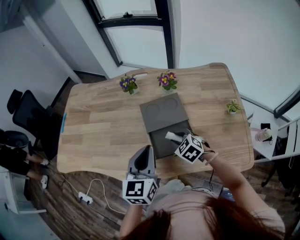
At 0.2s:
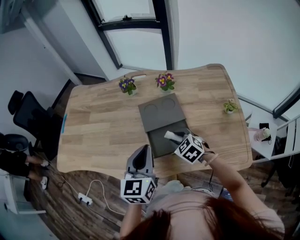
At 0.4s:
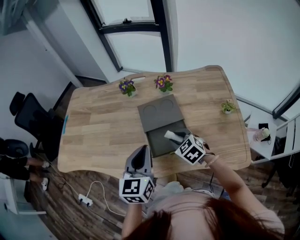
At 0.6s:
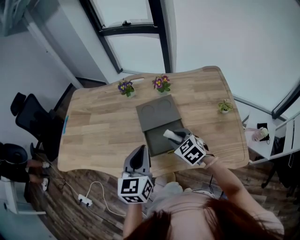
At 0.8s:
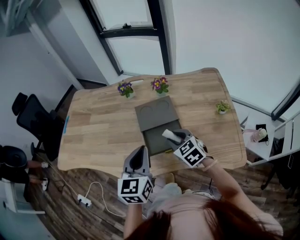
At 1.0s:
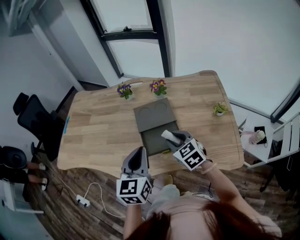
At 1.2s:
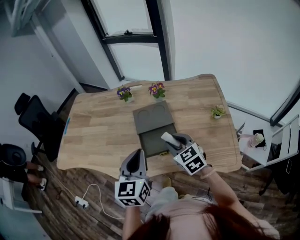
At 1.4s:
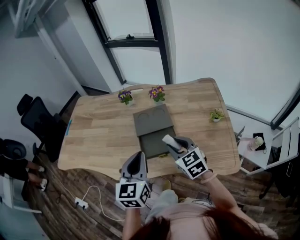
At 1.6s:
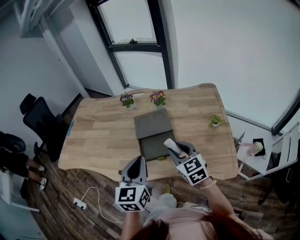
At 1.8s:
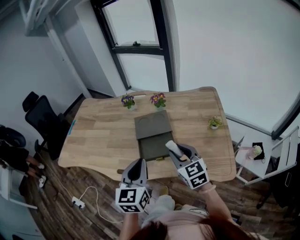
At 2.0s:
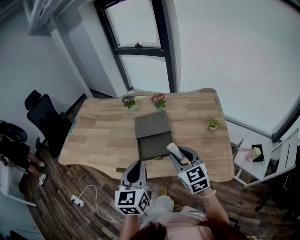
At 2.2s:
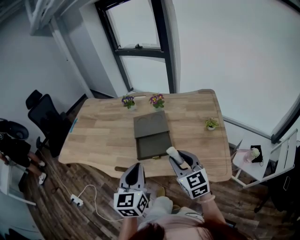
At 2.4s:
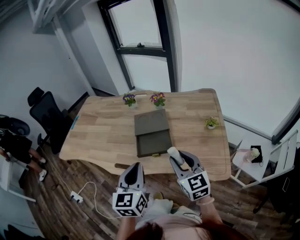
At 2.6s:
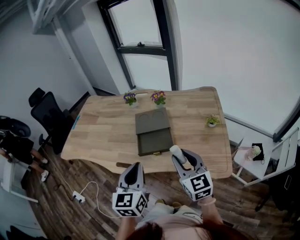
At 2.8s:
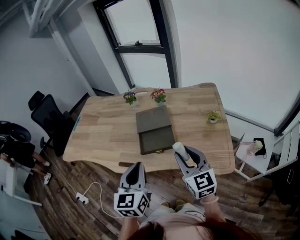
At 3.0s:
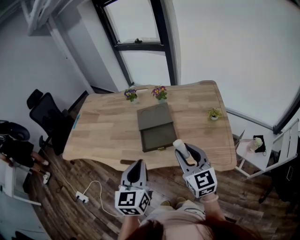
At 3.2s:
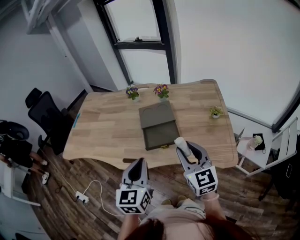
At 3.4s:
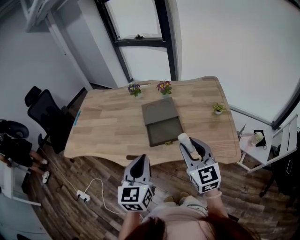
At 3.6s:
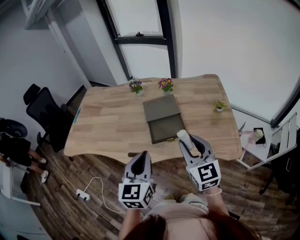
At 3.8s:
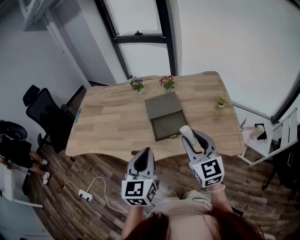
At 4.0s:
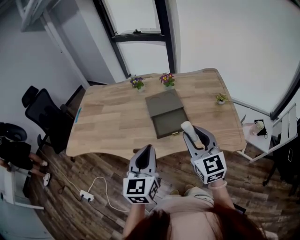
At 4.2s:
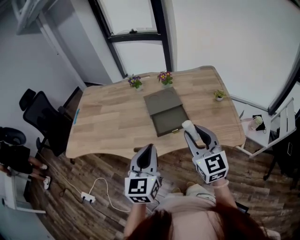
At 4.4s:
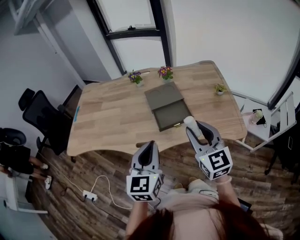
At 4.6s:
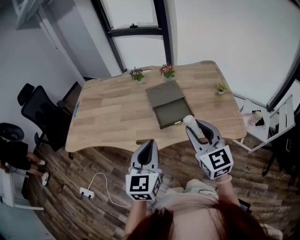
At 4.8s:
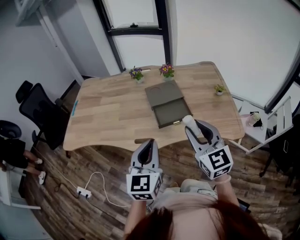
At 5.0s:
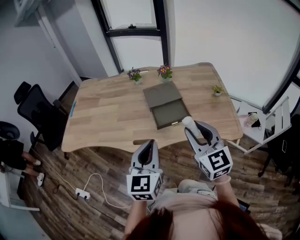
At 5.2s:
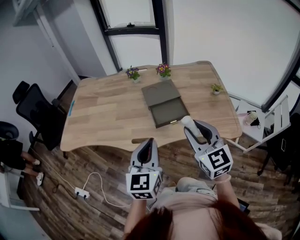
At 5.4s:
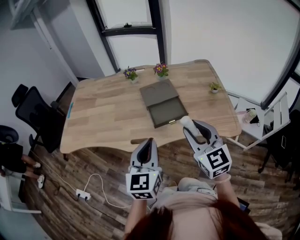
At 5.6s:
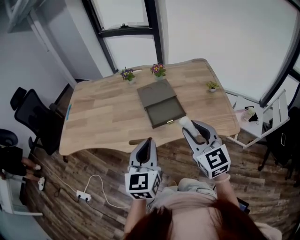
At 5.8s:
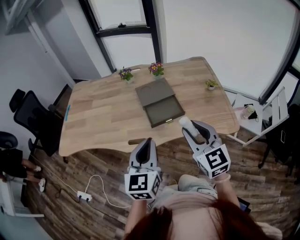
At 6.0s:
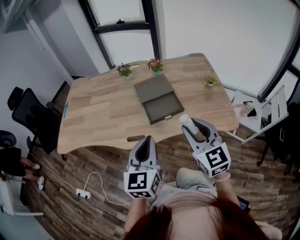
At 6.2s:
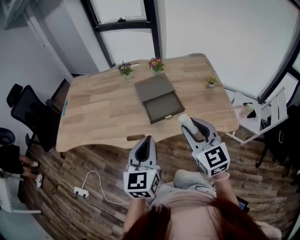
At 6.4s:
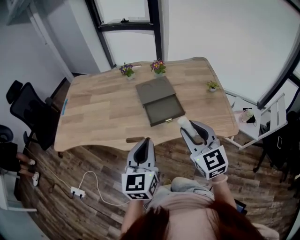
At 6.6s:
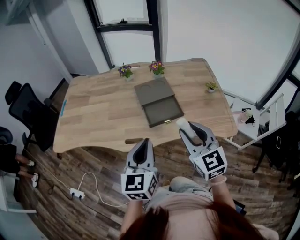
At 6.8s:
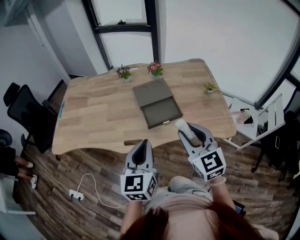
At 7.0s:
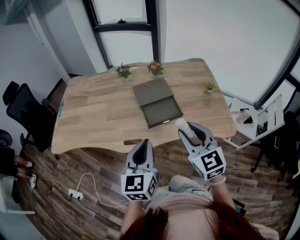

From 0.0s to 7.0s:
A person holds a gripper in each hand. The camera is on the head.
From 0.0s to 1.4s: The left gripper travels backward and upward by roughly 10 cm. Meanwhile the right gripper is displaced upward and backward by about 15 cm, and swivels roughly 30 degrees.
From 1.4s to 2.8s: The left gripper heads backward, covering about 10 cm. Meanwhile the right gripper moves backward, upward and to the right, approximately 15 cm, and changes its angle by roughly 20 degrees.
From 2.8s to 4.2s: The grippers both shift to the left by some 10 cm.
From 4.2s to 7.0s: The grippers move only a little.

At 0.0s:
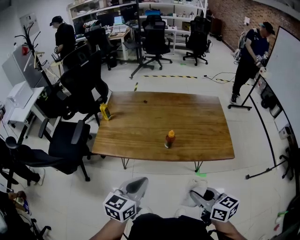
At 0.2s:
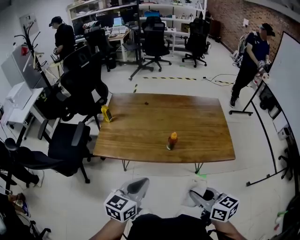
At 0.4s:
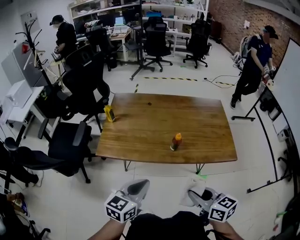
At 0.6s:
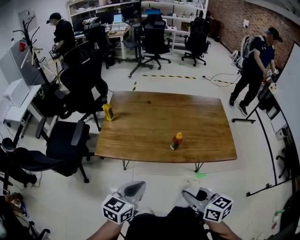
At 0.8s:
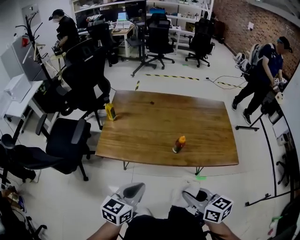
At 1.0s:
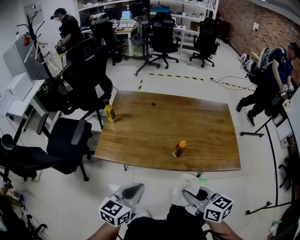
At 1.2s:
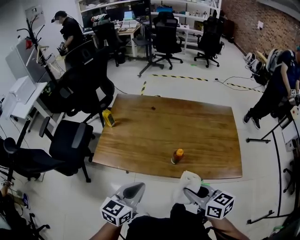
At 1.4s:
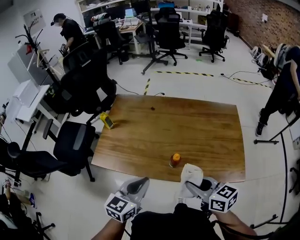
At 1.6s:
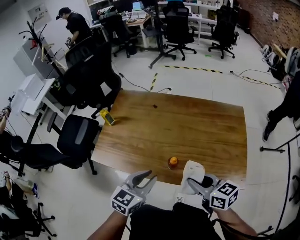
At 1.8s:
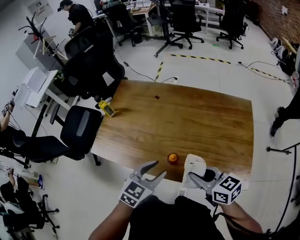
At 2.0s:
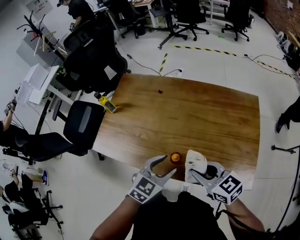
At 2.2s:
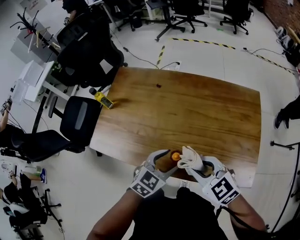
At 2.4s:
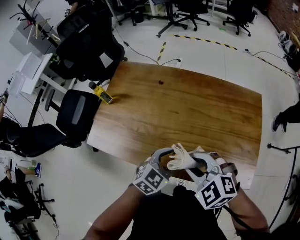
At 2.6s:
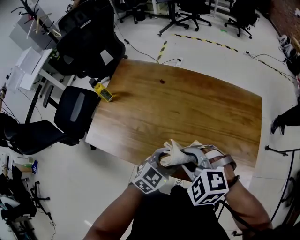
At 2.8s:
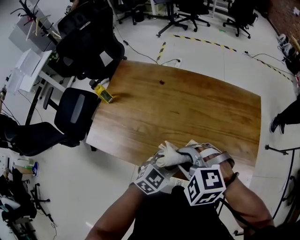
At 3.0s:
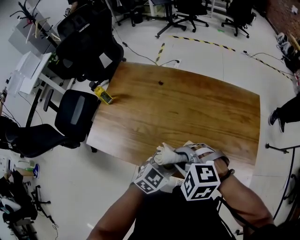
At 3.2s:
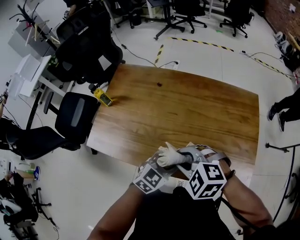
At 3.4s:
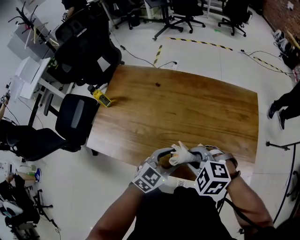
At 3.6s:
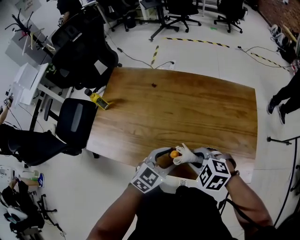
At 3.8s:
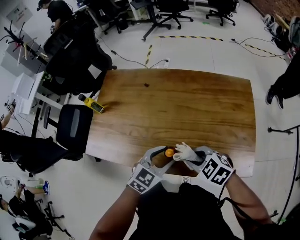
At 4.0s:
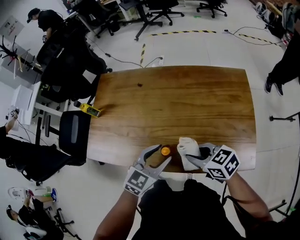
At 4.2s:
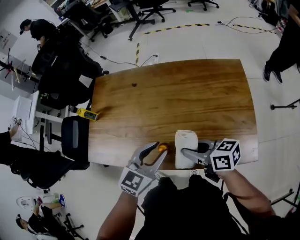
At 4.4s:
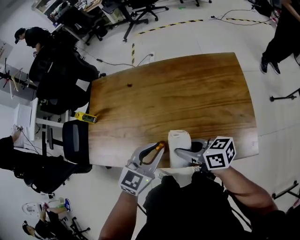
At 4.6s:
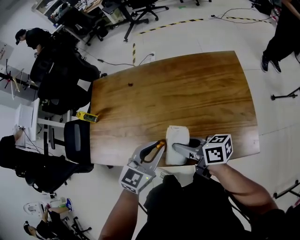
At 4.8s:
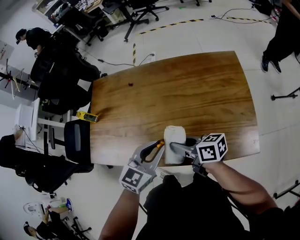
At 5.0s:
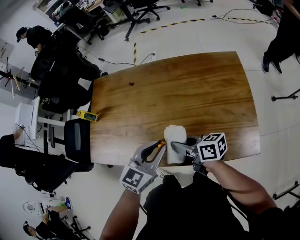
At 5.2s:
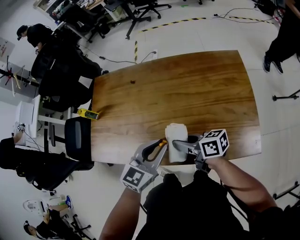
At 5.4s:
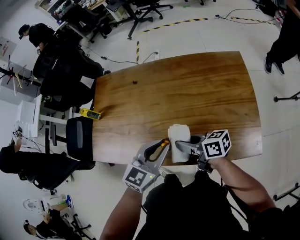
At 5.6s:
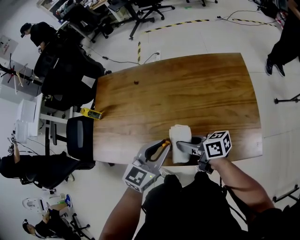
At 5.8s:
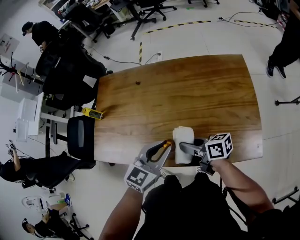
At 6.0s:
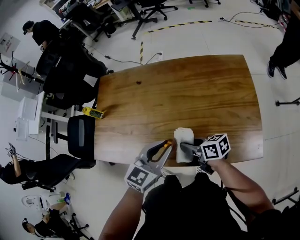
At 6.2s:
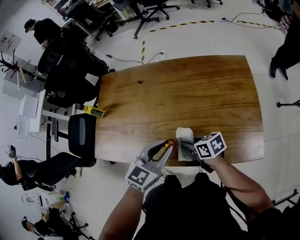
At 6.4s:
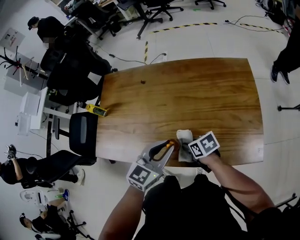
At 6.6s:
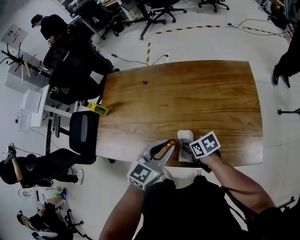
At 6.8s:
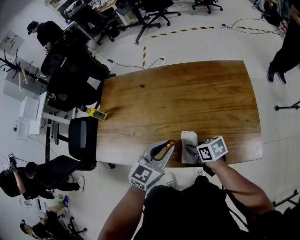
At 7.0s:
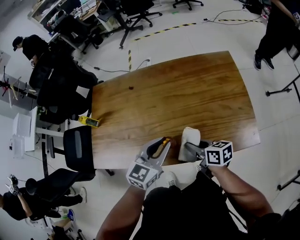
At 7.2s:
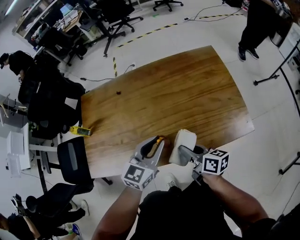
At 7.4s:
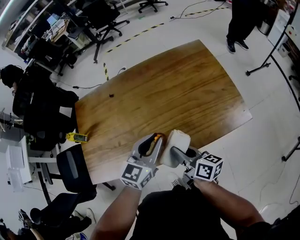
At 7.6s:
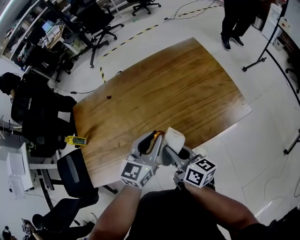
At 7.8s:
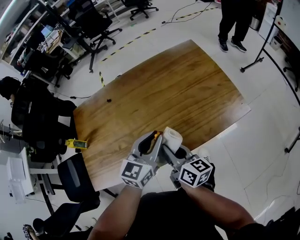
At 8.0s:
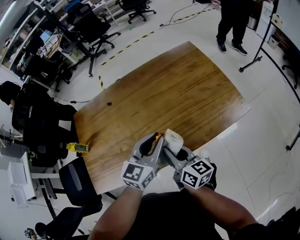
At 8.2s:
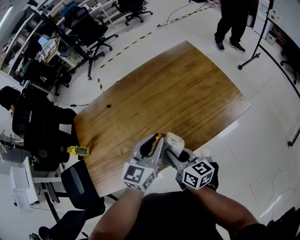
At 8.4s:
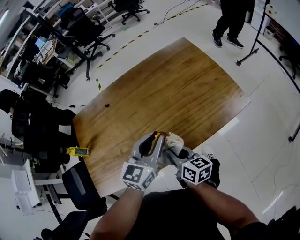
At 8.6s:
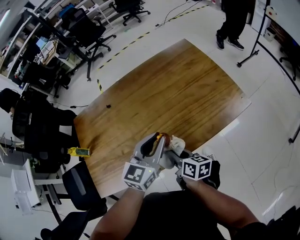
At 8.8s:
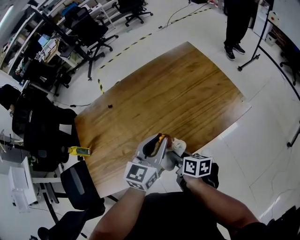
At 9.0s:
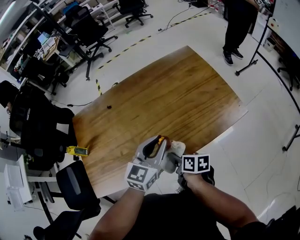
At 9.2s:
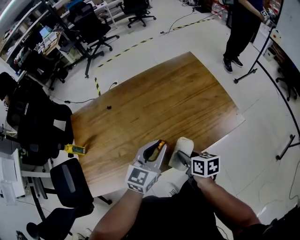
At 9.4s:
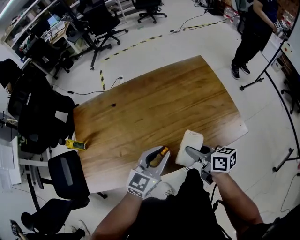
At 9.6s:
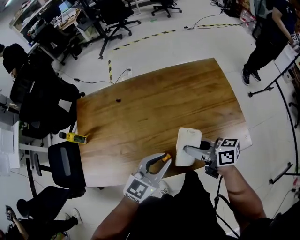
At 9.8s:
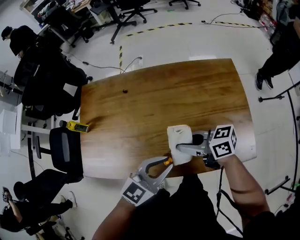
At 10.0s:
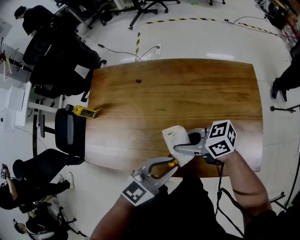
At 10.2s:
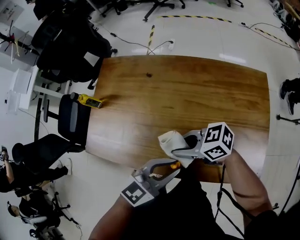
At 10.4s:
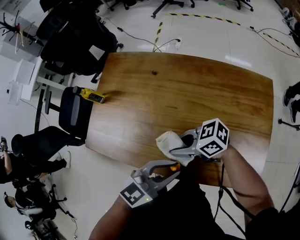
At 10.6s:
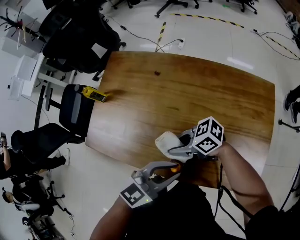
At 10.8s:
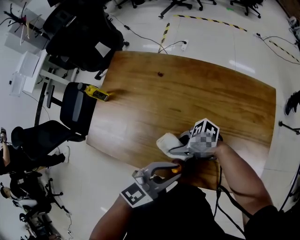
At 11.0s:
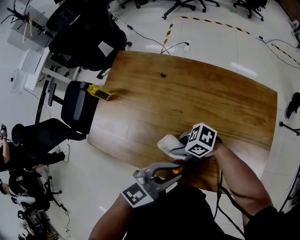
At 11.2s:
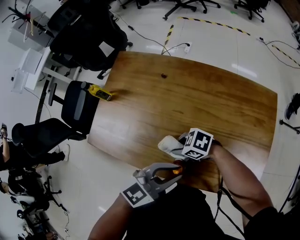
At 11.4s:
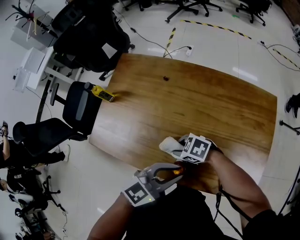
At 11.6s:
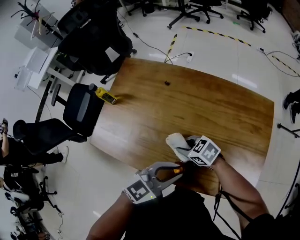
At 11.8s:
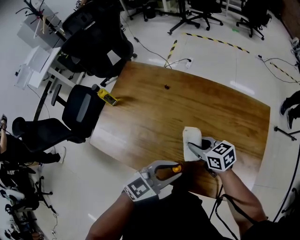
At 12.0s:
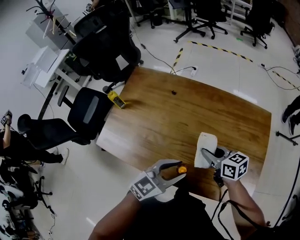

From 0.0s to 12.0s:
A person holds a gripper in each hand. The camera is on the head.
From 0.0s to 1.6s: The left gripper moves forward and to the right, approximately 20 cm, and opens, while the right gripper moves forward, approximately 25 cm.
From 1.6s to 3.0s: The left gripper goes some 15 cm to the right, downward and forward, and opens. The right gripper heads to the left and forward, covering about 10 cm, and rotates around the line of its fingers by some 60 degrees, counterclockwise from behind.
From 3.0s to 4.4s: The right gripper heads to the right, covering about 10 cm, and rotates around the line of its fingers by about 80 degrees, clockwise from behind; the left gripper moves upward, about 5 cm, and closes up.
From 4.4s to 6.0s: The right gripper travels downward by about 10 cm.
From 6.0s to 7.6s: The right gripper heads upward, covering some 5 cm, and swivels some 50 degrees.
From 7.6s to 9.0s: The right gripper shifts about 10 cm downward, and swivels some 30 degrees.
From 9.0s to 10.4s: The right gripper travels upward by approximately 10 cm, and turns by approximately 100 degrees.
From 10.4s to 12.0s: The left gripper opens, while the right gripper moves about 10 cm downward and comes back, and turns by about 40 degrees.

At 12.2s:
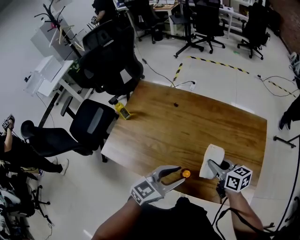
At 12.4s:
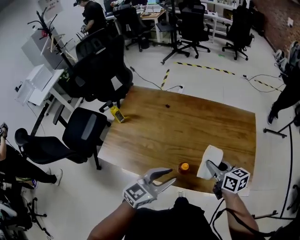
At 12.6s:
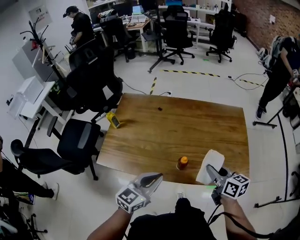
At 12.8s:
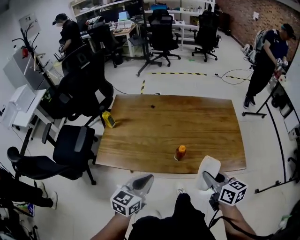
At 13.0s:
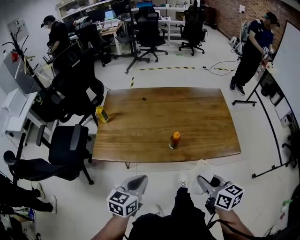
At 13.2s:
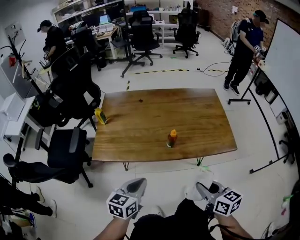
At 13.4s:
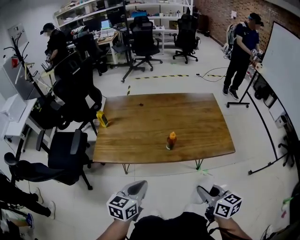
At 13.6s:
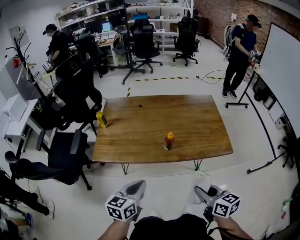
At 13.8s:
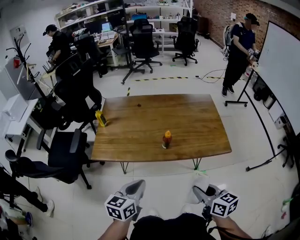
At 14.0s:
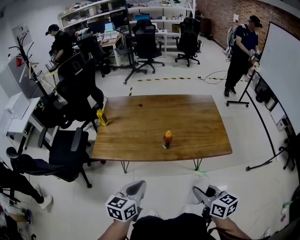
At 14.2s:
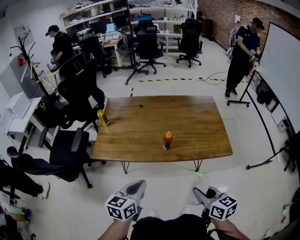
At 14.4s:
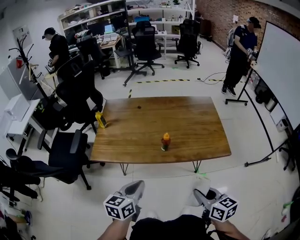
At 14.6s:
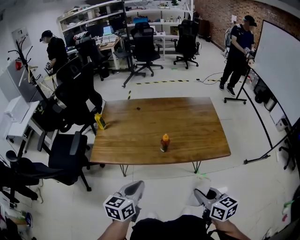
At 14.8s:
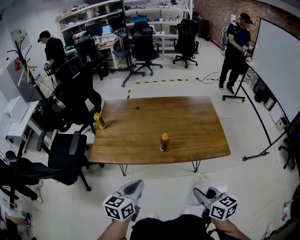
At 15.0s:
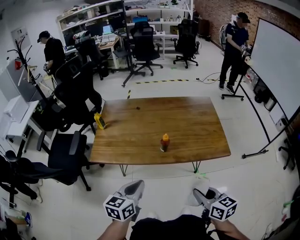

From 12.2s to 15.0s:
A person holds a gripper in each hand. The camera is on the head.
From 12.2s to 13.6s: The right gripper is displaced backward by roughly 40 cm, and swivels about 30 degrees, while the left gripper goes approximately 30 cm backward and to the left, and closes its fingers.
From 13.6s to 15.0s: There are only small adjustments of the grippers.

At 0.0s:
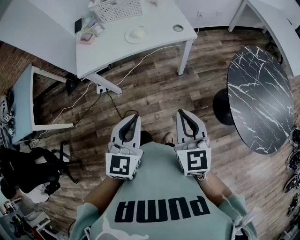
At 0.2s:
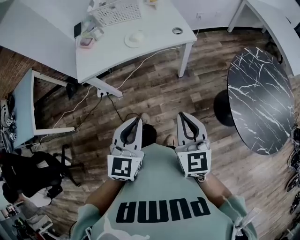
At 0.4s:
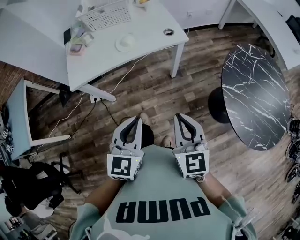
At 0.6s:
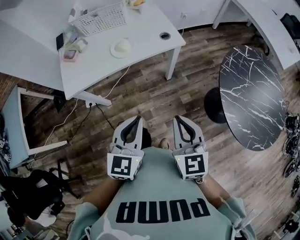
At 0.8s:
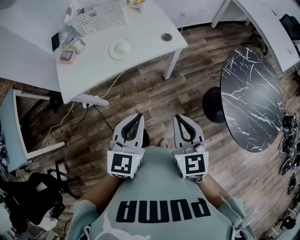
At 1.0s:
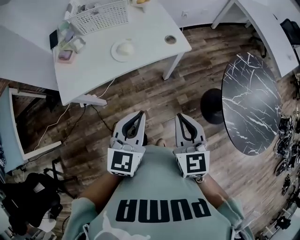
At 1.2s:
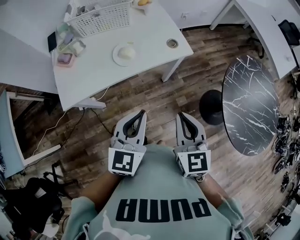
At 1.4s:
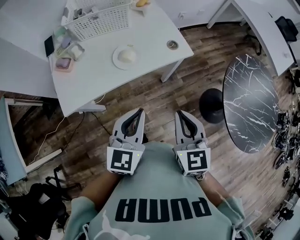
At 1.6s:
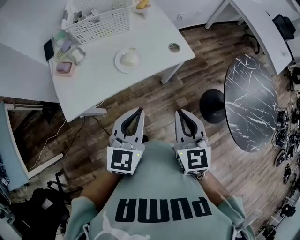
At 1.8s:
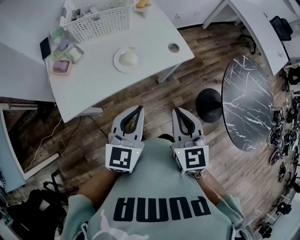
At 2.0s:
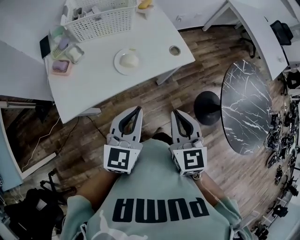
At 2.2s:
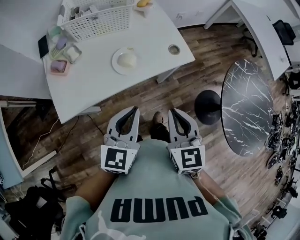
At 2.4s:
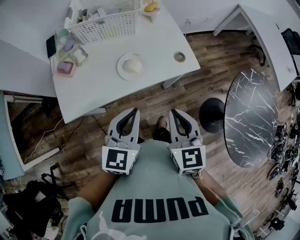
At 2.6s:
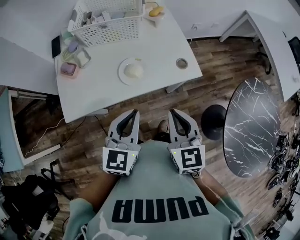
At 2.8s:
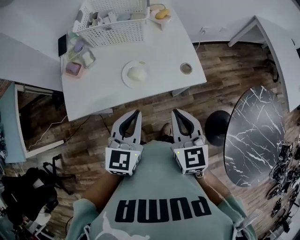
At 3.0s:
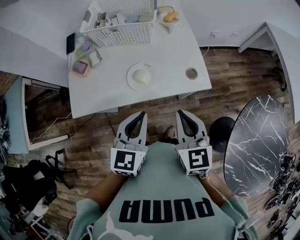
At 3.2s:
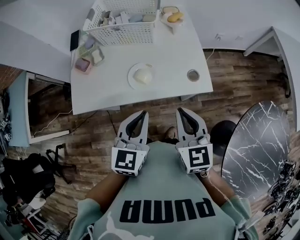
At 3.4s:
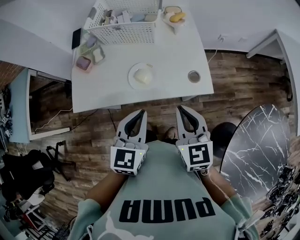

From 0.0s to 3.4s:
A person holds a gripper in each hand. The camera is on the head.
From 0.0s to 1.6s: The right gripper moves forward and to the left, roughly 20 cm; the left gripper moves forward, approximately 25 cm.
From 1.6s to 3.4s: The right gripper changes place by roughly 15 cm, and changes its angle by some 30 degrees; the left gripper moves approximately 10 cm, and changes its angle by about 20 degrees.
